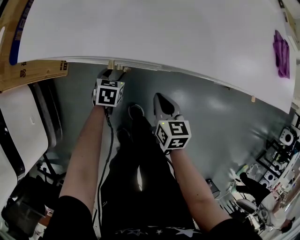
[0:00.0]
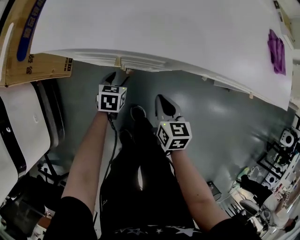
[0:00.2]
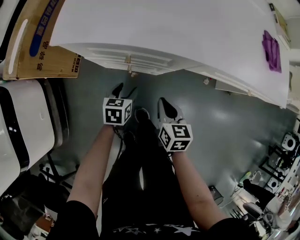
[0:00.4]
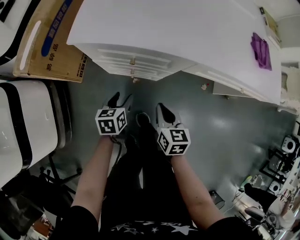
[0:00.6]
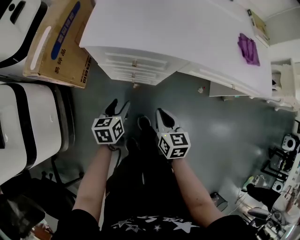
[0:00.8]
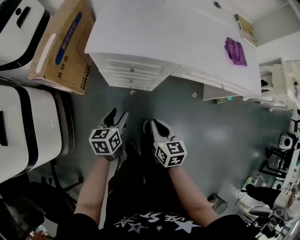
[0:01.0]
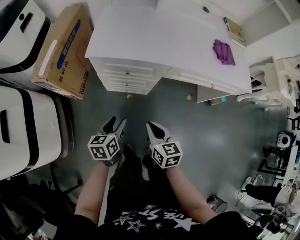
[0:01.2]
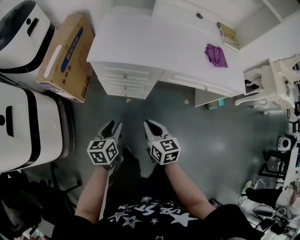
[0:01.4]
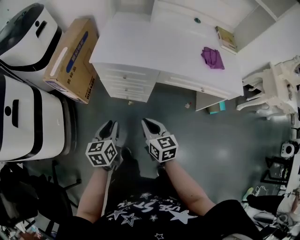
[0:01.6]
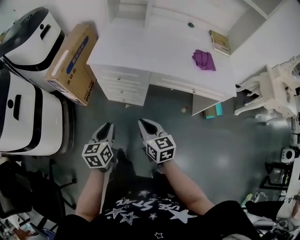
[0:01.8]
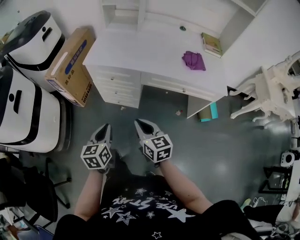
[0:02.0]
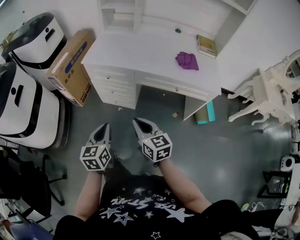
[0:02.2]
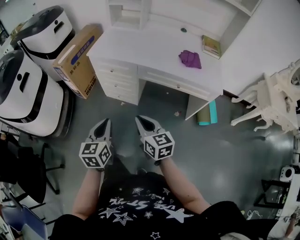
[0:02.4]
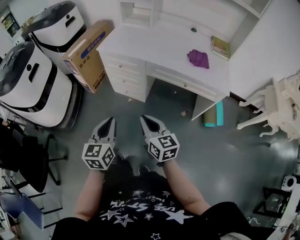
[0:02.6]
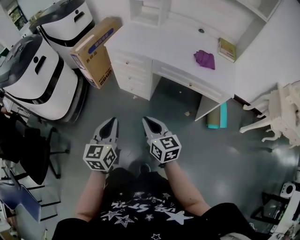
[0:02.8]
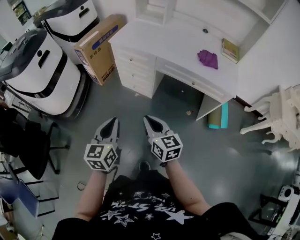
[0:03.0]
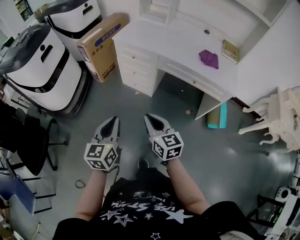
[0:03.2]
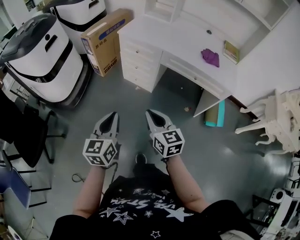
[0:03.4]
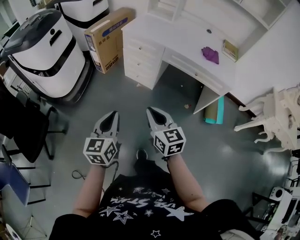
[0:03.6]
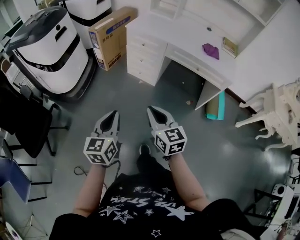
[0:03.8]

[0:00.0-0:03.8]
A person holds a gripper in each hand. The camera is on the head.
0:00.0 to 0:01.2: The grippers both shift upward and backward by some 30 cm. The left gripper turns by some 30 degrees.
0:01.2 to 0:02.6: The left gripper heads backward, upward and to the right, covering roughly 35 cm, rotates some 30 degrees, and closes, while the right gripper is displaced backward, to the right and upward by about 30 cm, and changes its angle by approximately 30 degrees.
0:02.6 to 0:03.8: Both grippers travel together backward and to the left, some 20 cm.

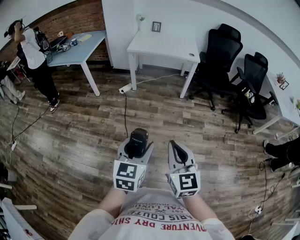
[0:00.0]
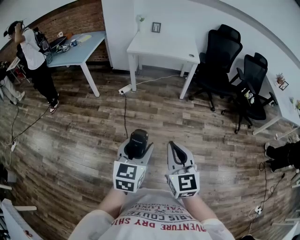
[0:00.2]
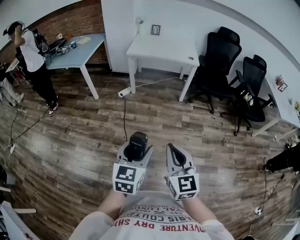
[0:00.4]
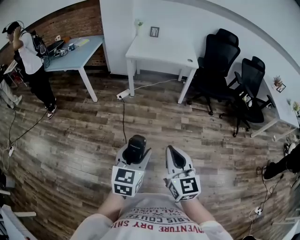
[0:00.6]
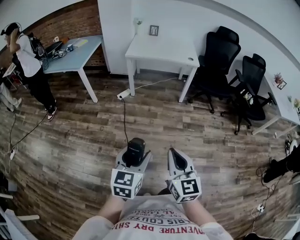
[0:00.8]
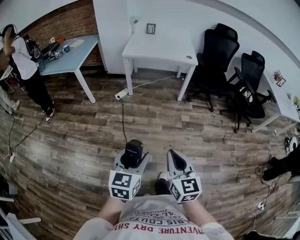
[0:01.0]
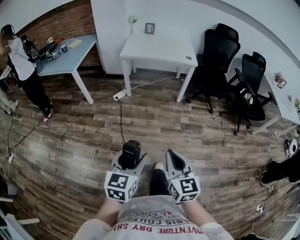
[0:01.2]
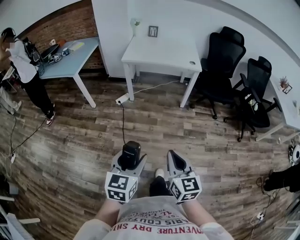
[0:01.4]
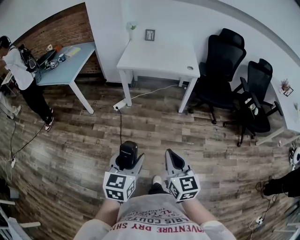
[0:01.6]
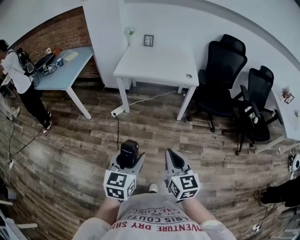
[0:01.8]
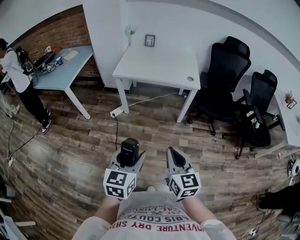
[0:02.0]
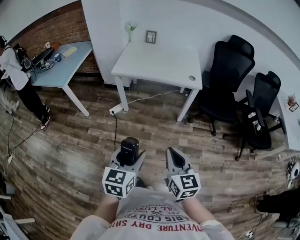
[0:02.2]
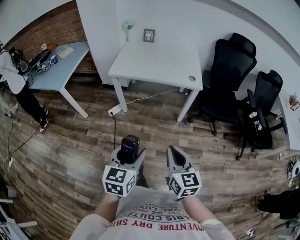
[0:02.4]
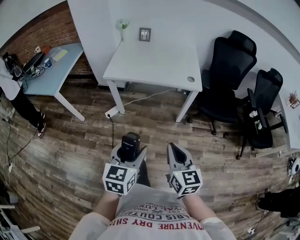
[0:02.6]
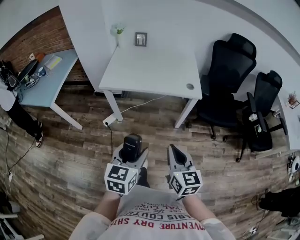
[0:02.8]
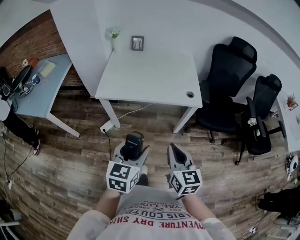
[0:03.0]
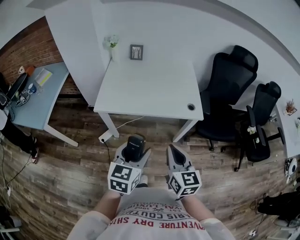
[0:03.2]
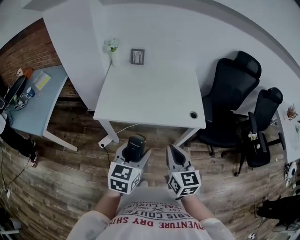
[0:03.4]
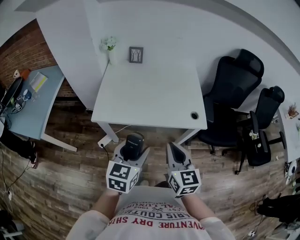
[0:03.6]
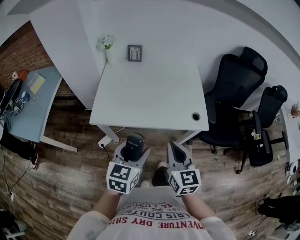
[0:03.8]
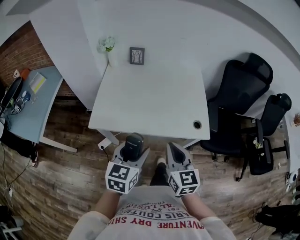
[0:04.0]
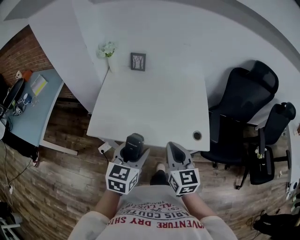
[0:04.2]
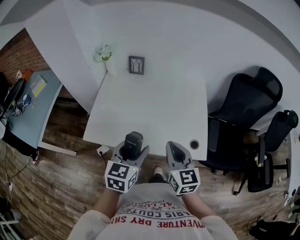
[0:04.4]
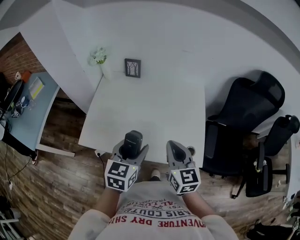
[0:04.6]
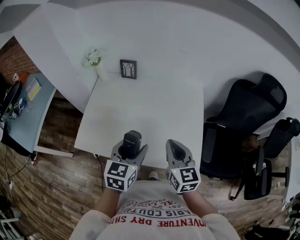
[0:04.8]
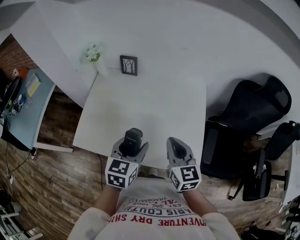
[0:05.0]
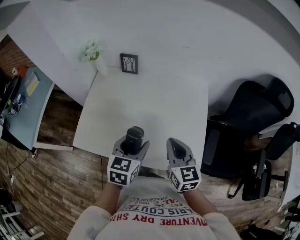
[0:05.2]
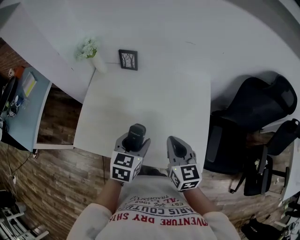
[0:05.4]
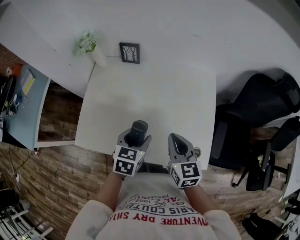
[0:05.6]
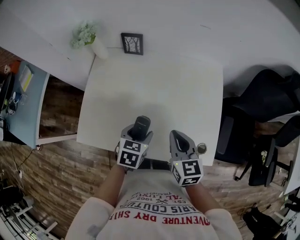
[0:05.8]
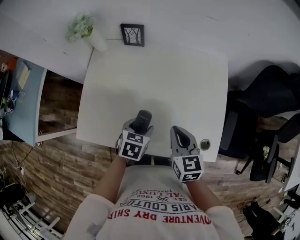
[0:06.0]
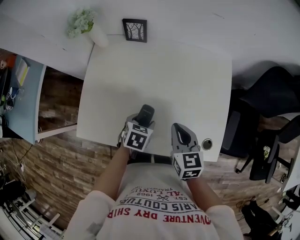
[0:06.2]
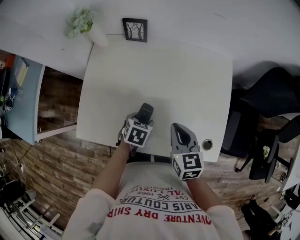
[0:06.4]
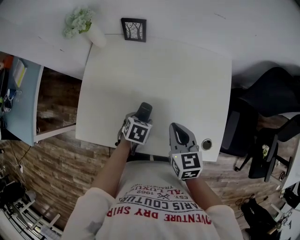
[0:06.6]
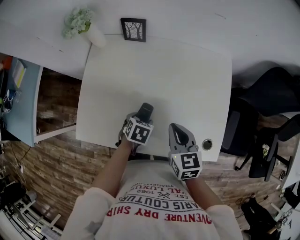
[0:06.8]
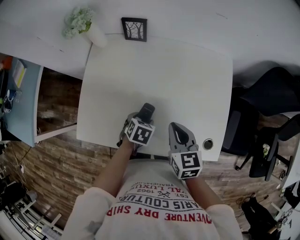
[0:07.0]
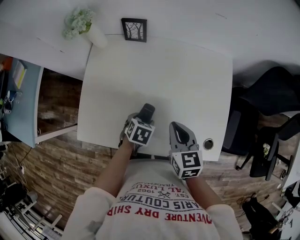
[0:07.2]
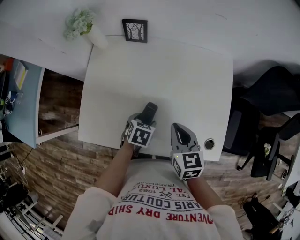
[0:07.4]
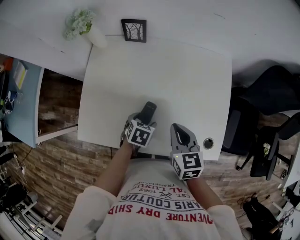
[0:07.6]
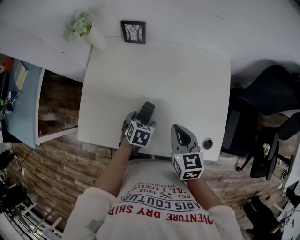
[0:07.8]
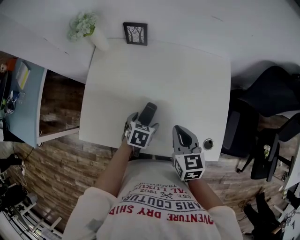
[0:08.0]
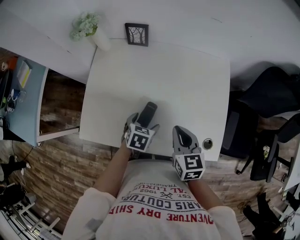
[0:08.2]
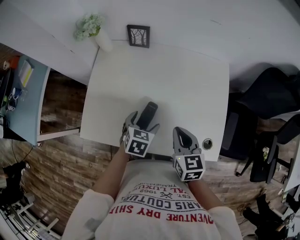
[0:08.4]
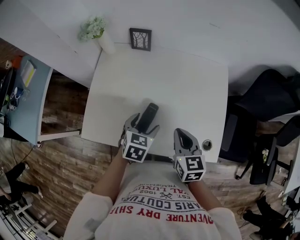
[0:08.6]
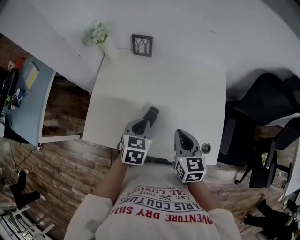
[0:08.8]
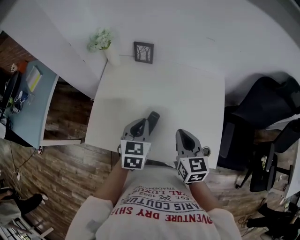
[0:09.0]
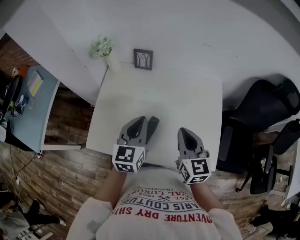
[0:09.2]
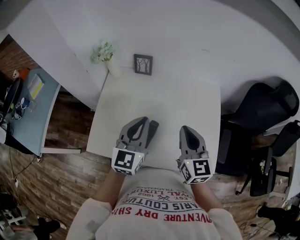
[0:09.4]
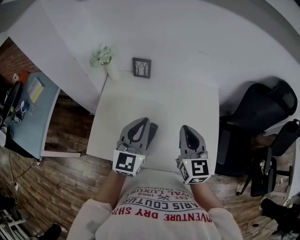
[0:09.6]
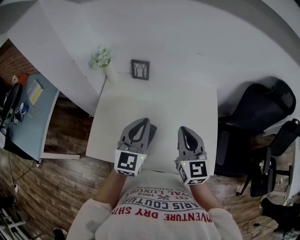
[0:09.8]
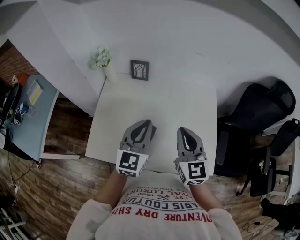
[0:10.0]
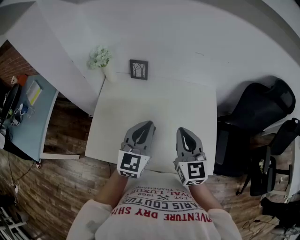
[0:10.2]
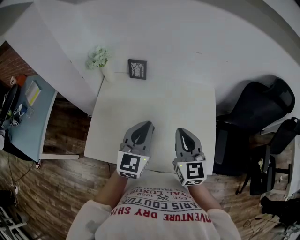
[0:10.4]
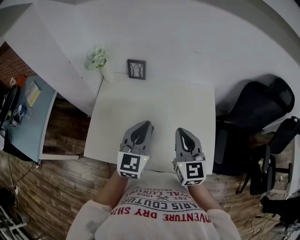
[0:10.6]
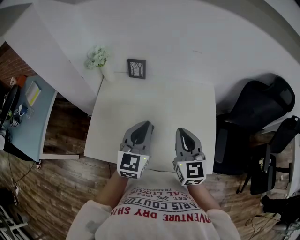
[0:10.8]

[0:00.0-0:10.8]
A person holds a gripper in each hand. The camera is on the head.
0:00.0 to 0:01.6: Both grippers travel together forward, approximately 20 cm.
0:01.6 to 0:03.0: The two grippers travel together, forward, some 40 cm.
0:03.0 to 0:04.6: The two grippers travel together, forward, approximately 40 cm.
0:04.6 to 0:06.2: The left gripper shifts about 25 cm downward and forward, and tilts its fingers roughly 40 degrees downward. The right gripper shifts approximately 20 cm downward and forward.
0:06.2 to 0:07.8: The grippers make only small movements.
0:07.8 to 0:09.2: The right gripper moves upward, some 10 cm; the left gripper shifts some 25 cm upward, points its fingers approximately 50 degrees further upward, and closes its fingers.
0:09.2 to 0:10.8: The left gripper ends up about 5 cm from where it was.

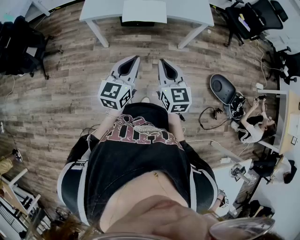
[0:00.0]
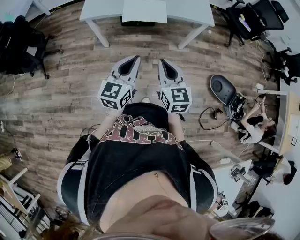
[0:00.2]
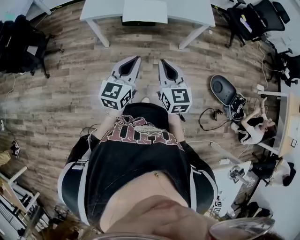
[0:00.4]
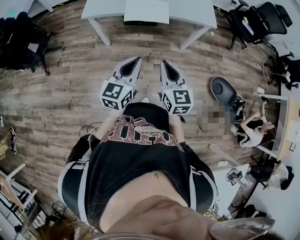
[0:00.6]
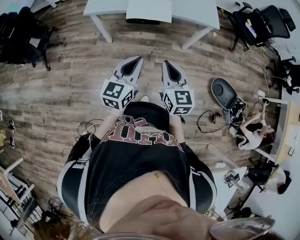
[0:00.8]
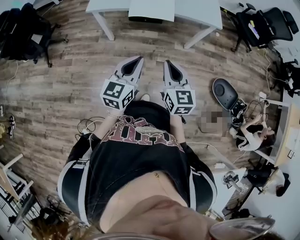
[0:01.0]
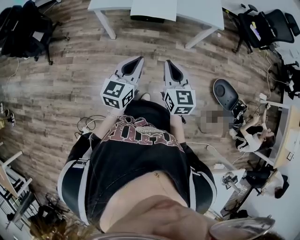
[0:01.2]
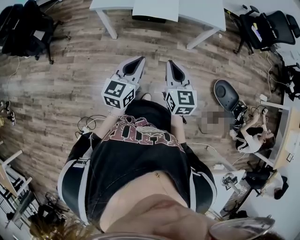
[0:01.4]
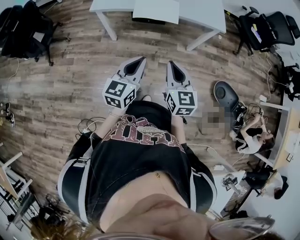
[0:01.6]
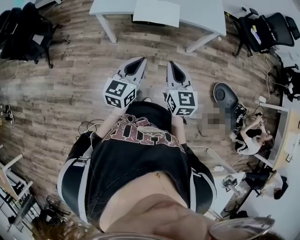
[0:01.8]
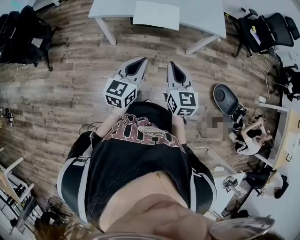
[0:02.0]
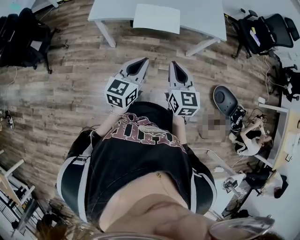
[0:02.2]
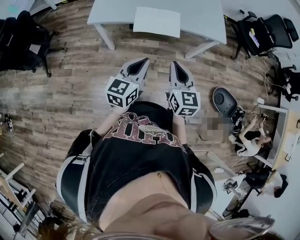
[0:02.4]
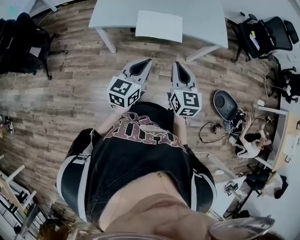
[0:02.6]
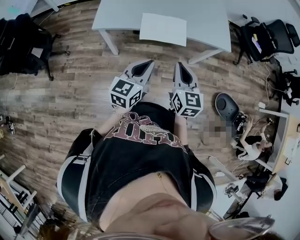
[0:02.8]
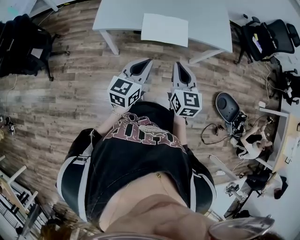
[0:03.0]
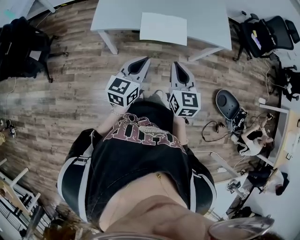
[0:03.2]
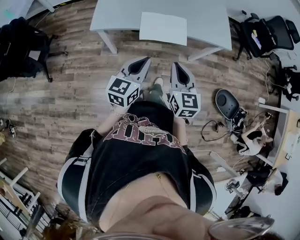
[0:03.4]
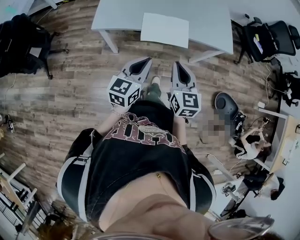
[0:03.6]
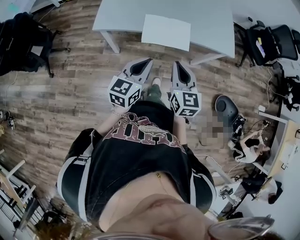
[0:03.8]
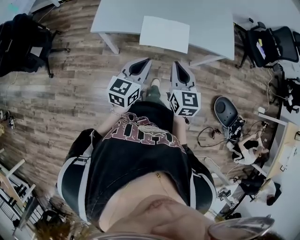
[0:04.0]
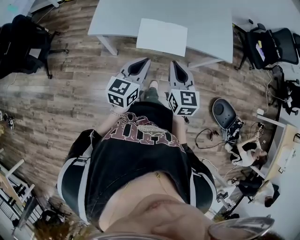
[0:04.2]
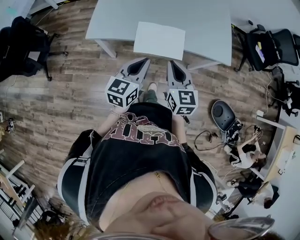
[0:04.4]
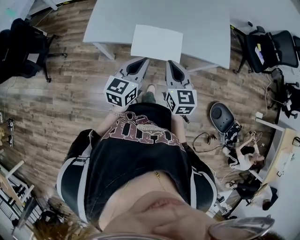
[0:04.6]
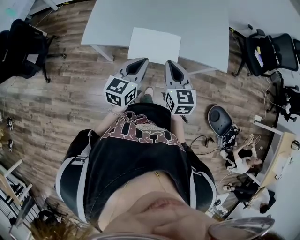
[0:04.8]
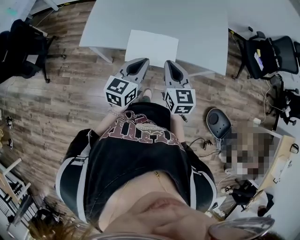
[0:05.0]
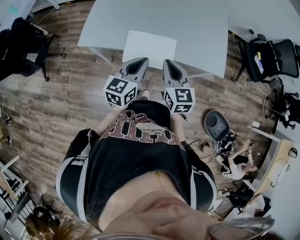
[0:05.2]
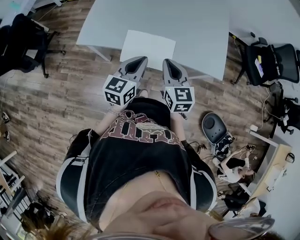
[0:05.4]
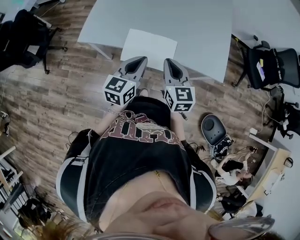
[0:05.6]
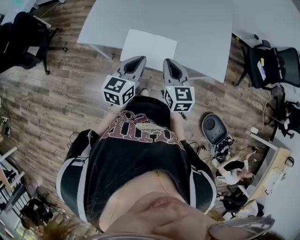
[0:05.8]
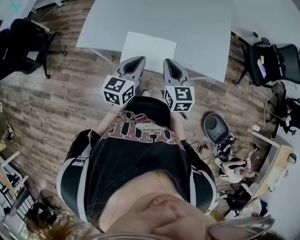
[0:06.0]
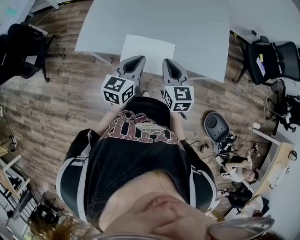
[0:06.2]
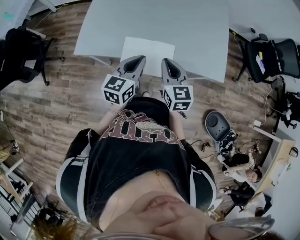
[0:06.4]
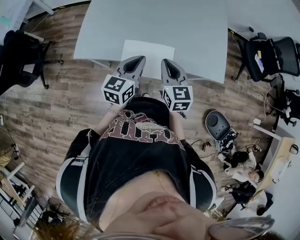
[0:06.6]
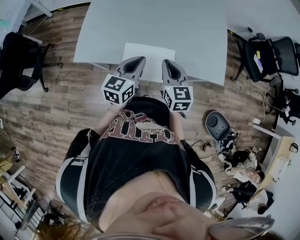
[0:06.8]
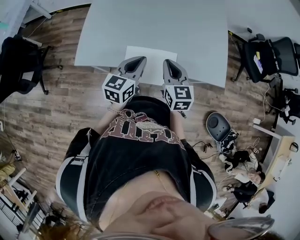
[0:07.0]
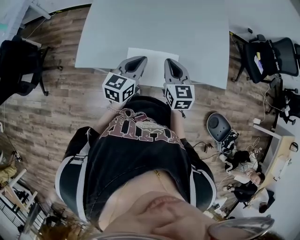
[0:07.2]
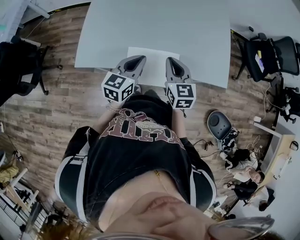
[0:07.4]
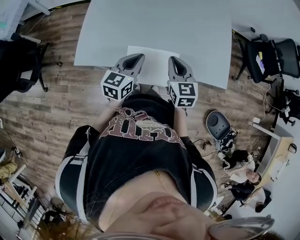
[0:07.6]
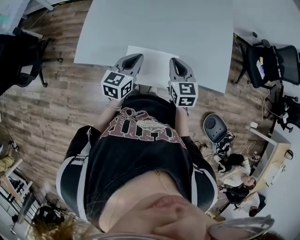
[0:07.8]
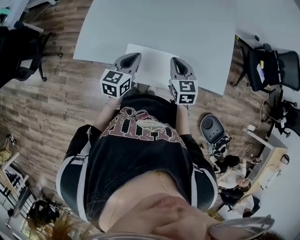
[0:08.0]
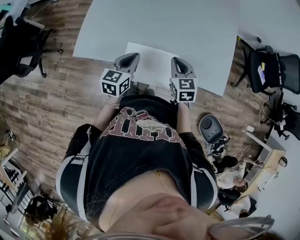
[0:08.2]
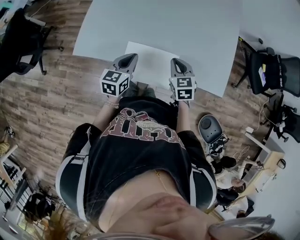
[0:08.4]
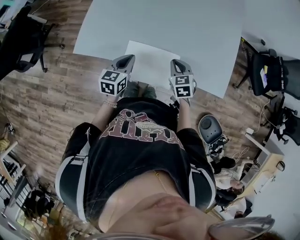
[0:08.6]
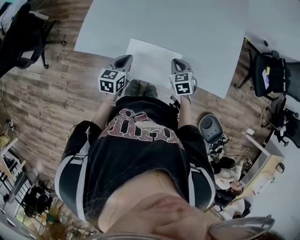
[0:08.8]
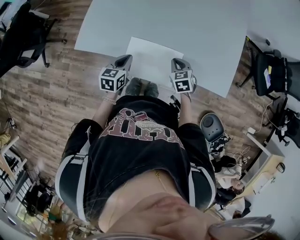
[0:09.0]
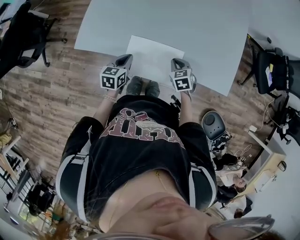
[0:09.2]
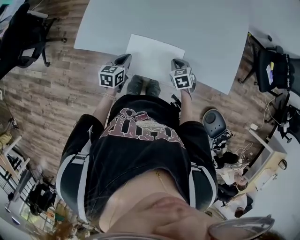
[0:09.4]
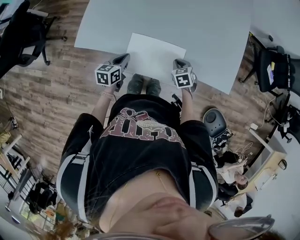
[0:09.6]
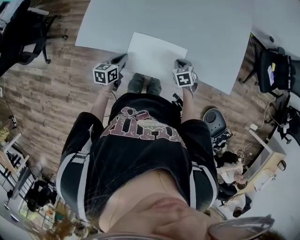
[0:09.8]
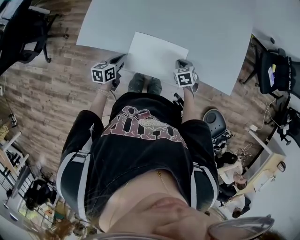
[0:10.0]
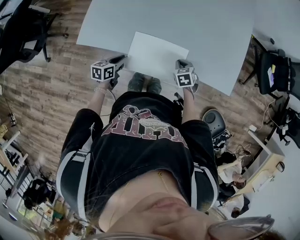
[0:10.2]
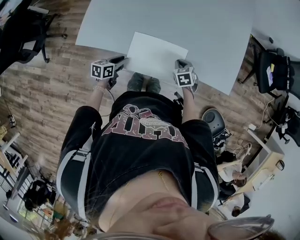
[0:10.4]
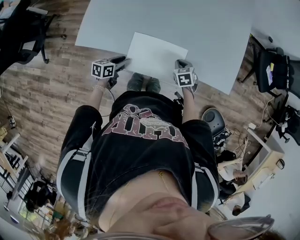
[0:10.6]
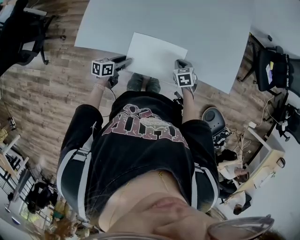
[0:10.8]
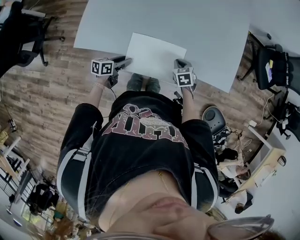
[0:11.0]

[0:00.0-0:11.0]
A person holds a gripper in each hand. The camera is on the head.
0:00.0 to 0:01.6: The grippers move only a little.
0:01.6 to 0:03.2: The two grippers go roughly 20 cm forward and to the left.
0:03.2 to 0:04.8: The two grippers go some 15 cm forward.
0:04.8 to 0:06.2: The two grippers go about 10 cm forward.
0:06.2 to 0:07.8: The right gripper travels forward by some 10 cm. Meanwhile the left gripper travels forward and to the left by about 10 cm.
0:07.8 to 0:09.4: Both grippers travel together downward, approximately 15 cm. The left gripper turns by approximately 20 degrees. Meanwhile the right gripper turns by roughly 30 degrees.
0:09.4 to 0:11.0: The left gripper moves downward, about 10 cm, rotates some 30 degrees, and opens its fingers.
